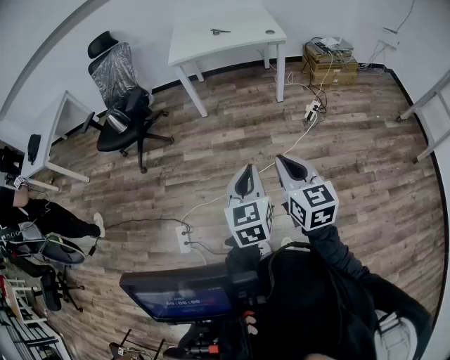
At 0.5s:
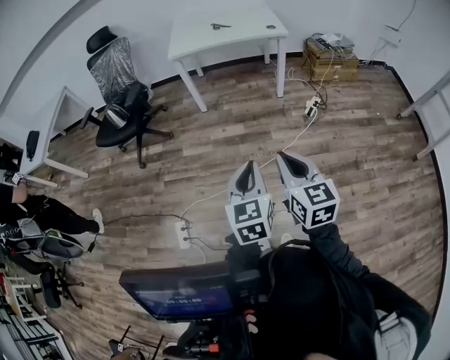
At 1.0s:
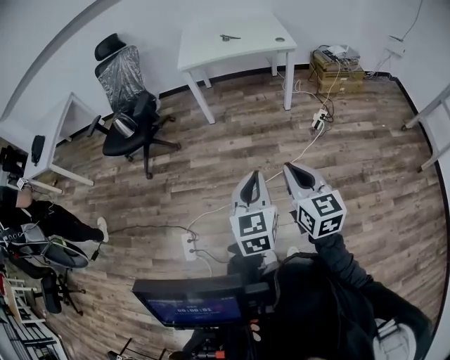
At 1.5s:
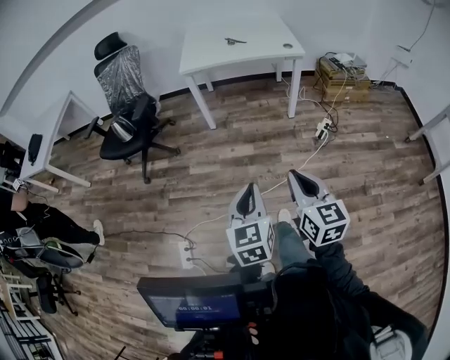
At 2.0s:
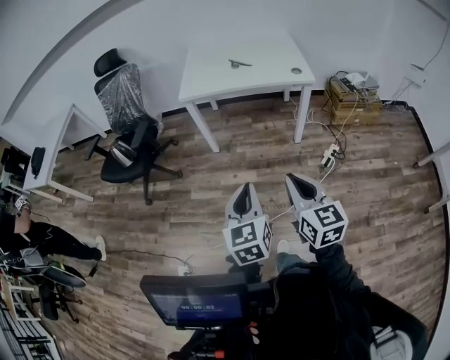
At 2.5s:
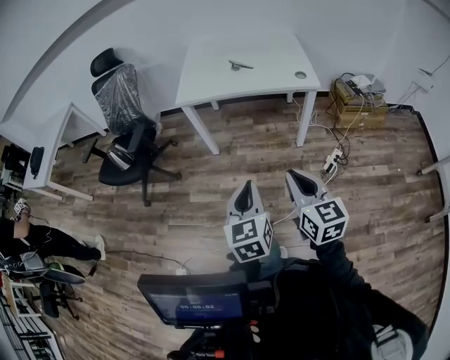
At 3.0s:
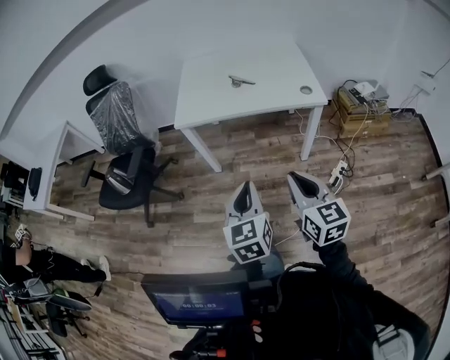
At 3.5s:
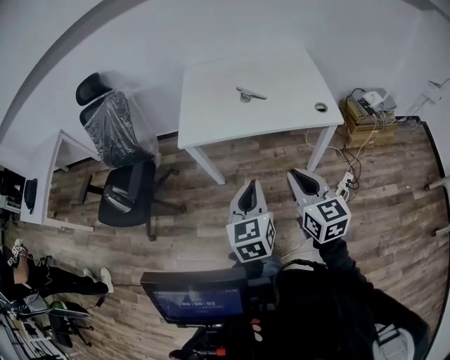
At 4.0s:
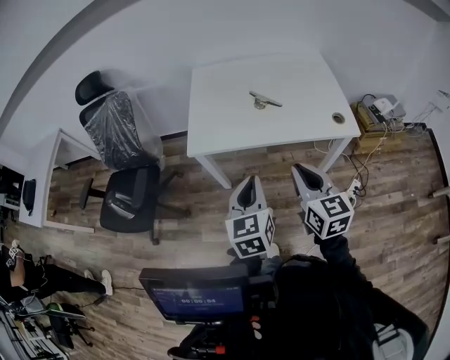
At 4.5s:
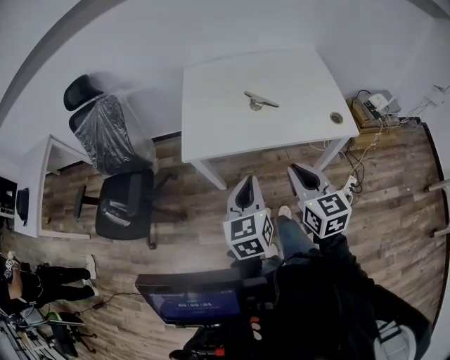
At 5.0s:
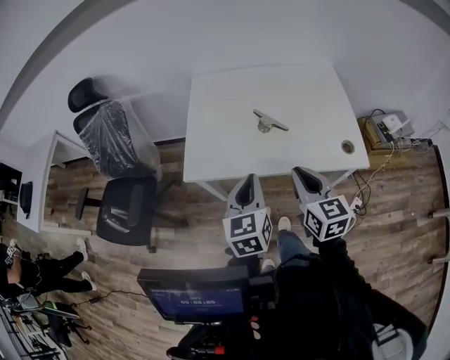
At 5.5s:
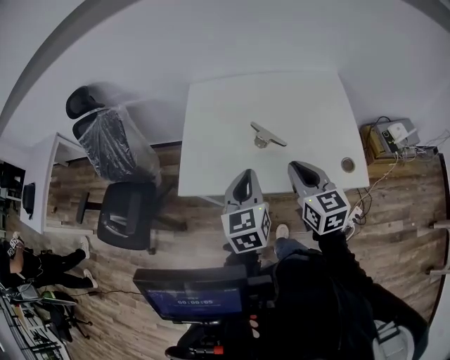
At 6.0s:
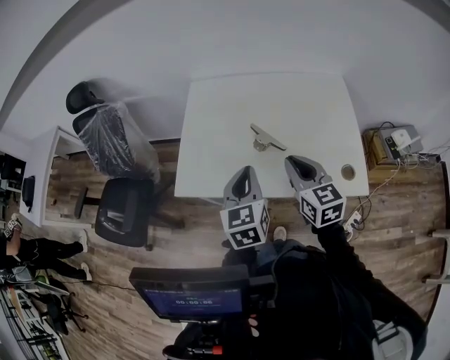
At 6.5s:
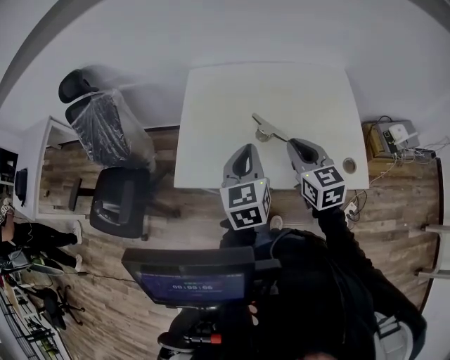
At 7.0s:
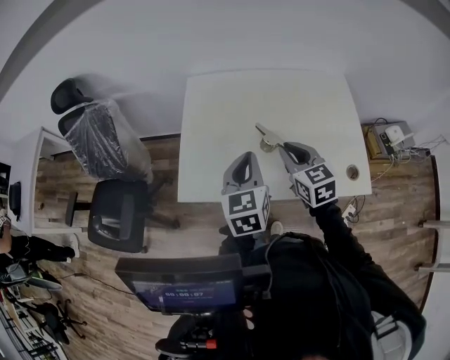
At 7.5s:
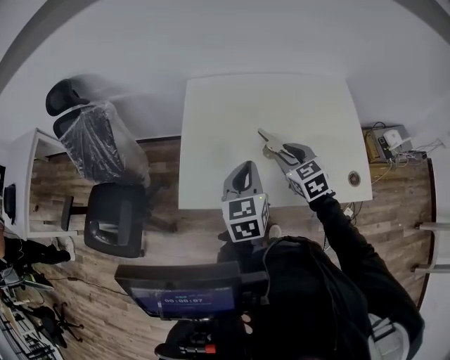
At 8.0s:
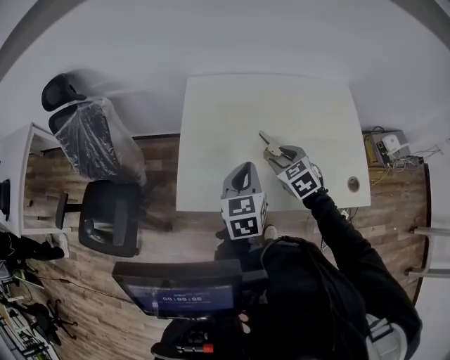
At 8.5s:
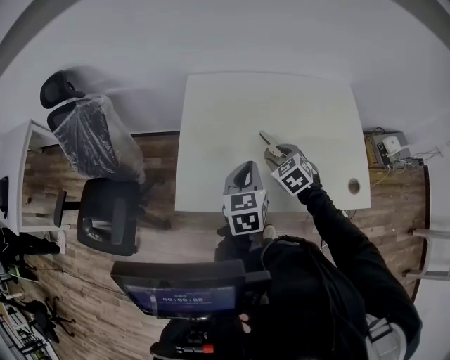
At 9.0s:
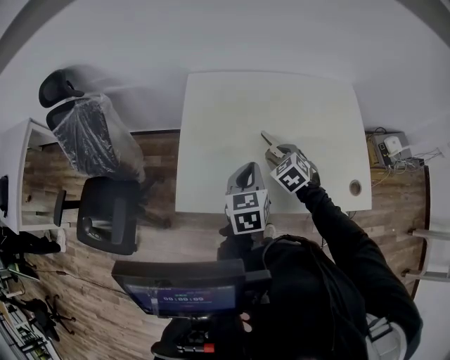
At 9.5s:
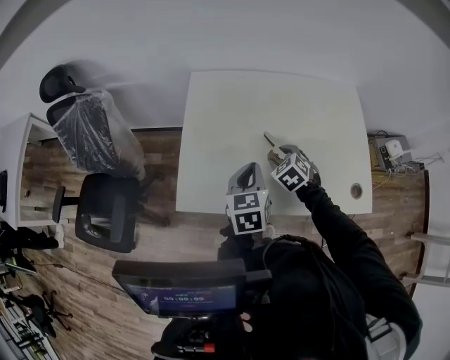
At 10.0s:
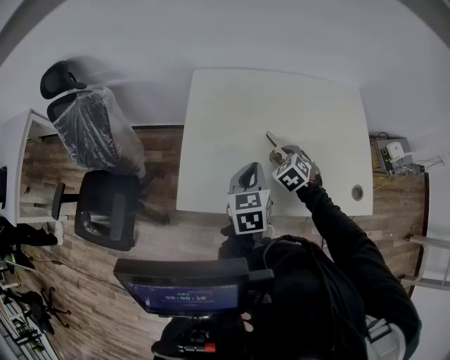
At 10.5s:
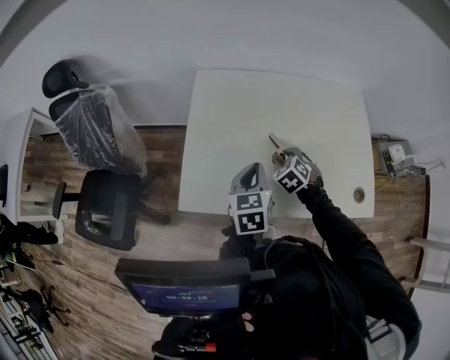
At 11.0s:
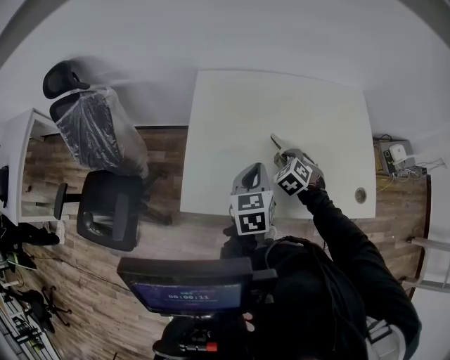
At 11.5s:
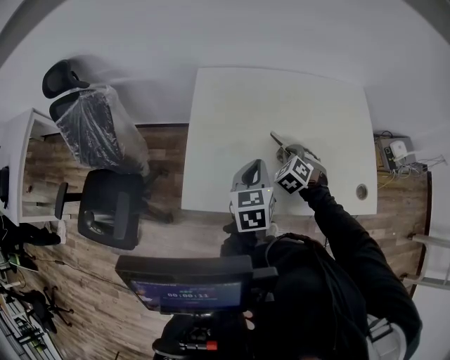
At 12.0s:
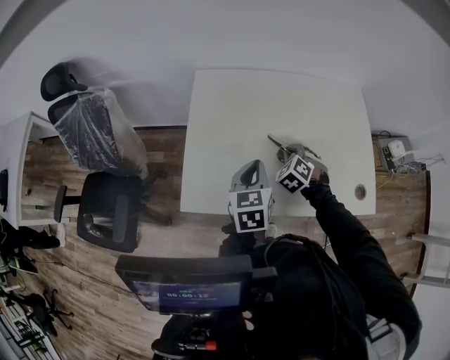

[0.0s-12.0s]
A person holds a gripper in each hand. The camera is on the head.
0.0s to 2.0s: The grippers both shift forward by roughly 30 cm.
2.0s to 4.0s: Both grippers are carried forward, some 50 cm.
4.0s to 6.0s: Both grippers move forward, roughly 25 cm.
6.0s to 8.0s: The right gripper travels forward, downward and to the left by approximately 20 cm, turns by roughly 30 degrees, and opens up. Meanwhile the left gripper travels forward and to the left by approximately 10 cm.
8.0s to 10.0s: The right gripper heads downward, covering approximately 10 cm.
10.0s to 12.0s: The right gripper closes up.

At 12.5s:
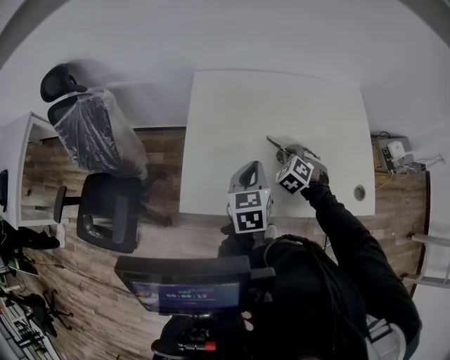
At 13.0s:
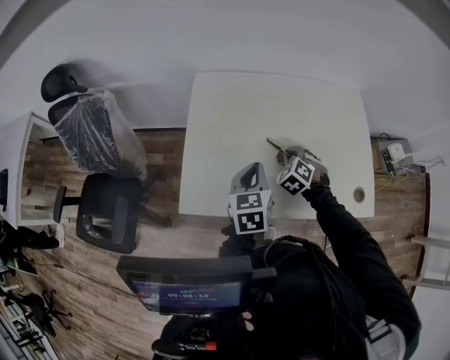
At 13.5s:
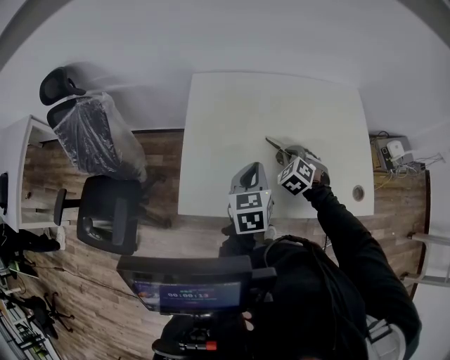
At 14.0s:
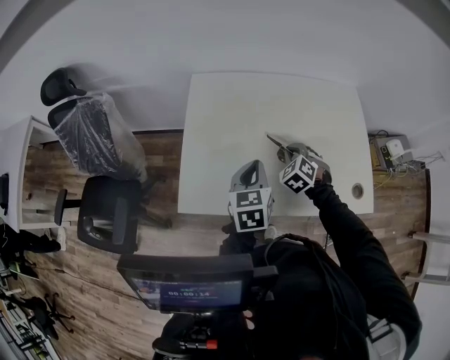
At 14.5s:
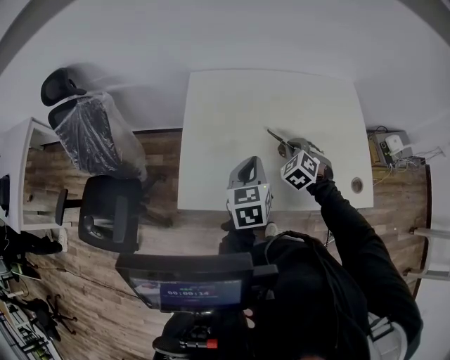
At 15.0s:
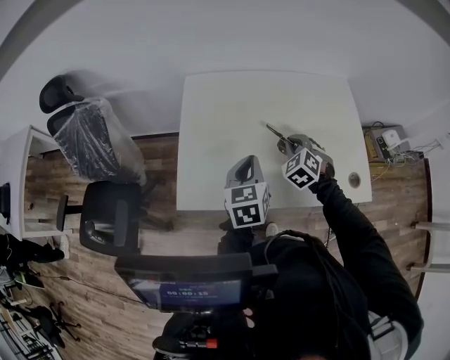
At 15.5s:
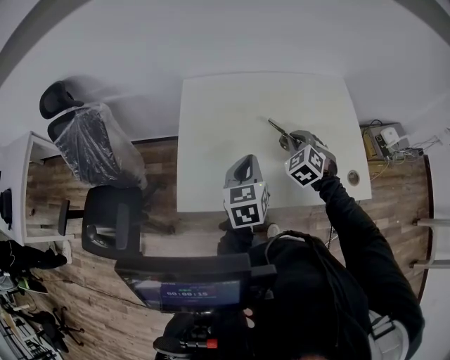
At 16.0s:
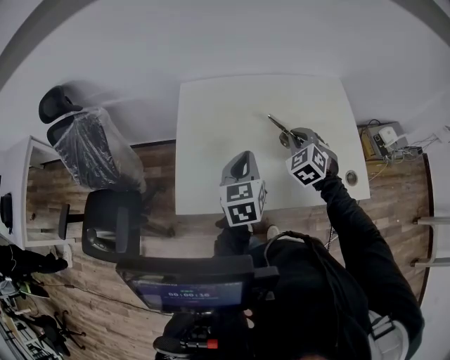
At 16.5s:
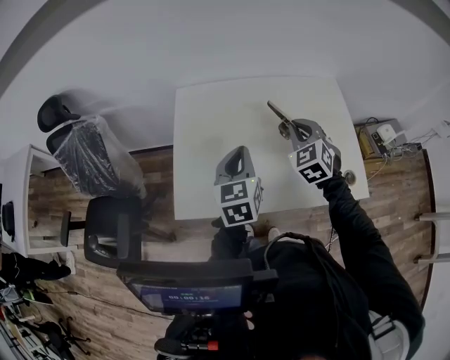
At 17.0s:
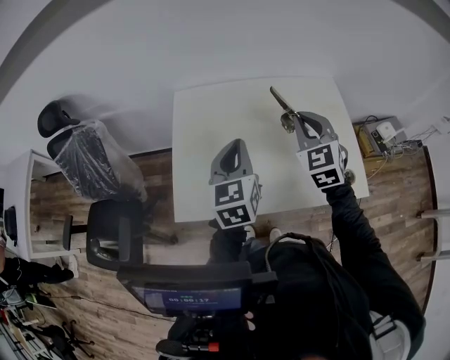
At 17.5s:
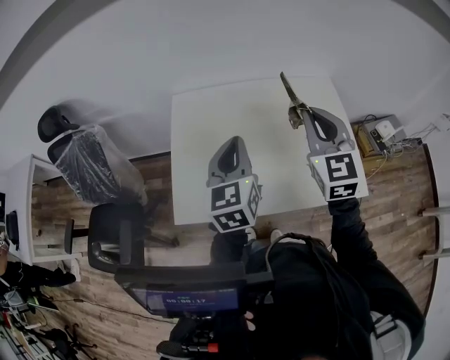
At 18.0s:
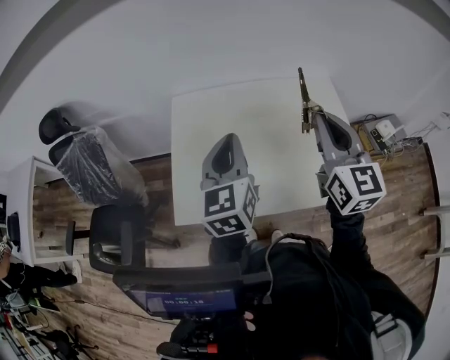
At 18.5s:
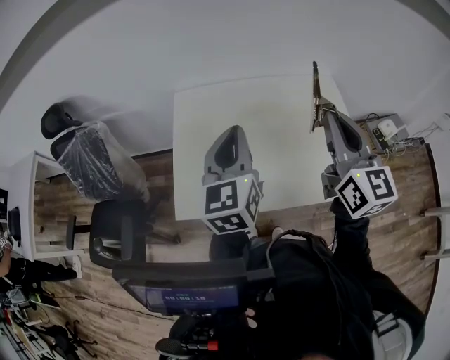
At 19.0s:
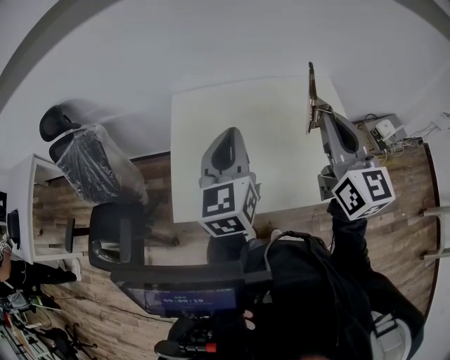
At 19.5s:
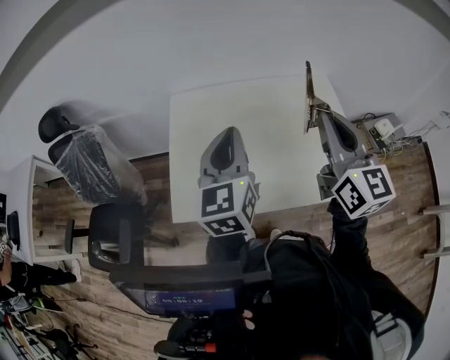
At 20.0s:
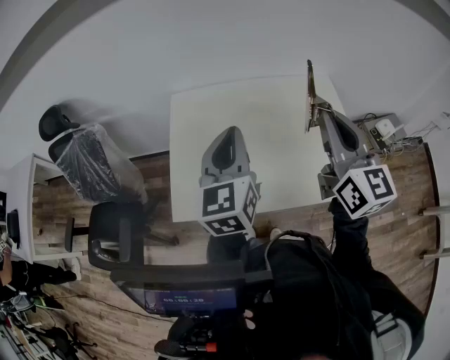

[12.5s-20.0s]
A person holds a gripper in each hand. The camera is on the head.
12.5s to 14.5s: The grippers stay close to where they were, moving slightly.
14.5s to 16.5s: The left gripper heads upward, covering roughly 5 cm. Meanwhile the right gripper travels upward by roughly 15 cm, and rotates approximately 20 degrees.
16.5s to 18.0s: The right gripper moves upward and backward, some 20 cm, and tilts its fingers some 30 degrees upward. The left gripper heads upward, covering approximately 10 cm.
18.0s to 20.0s: The grippers make only small movements.

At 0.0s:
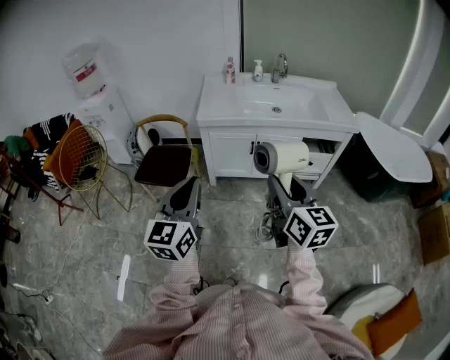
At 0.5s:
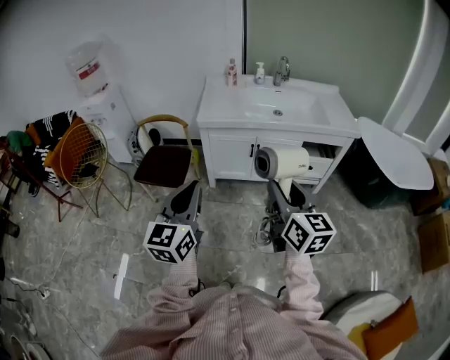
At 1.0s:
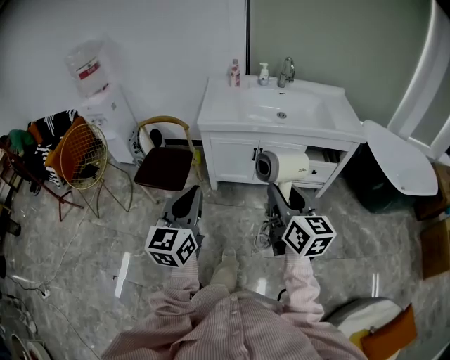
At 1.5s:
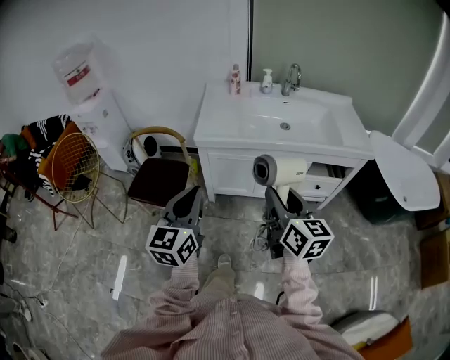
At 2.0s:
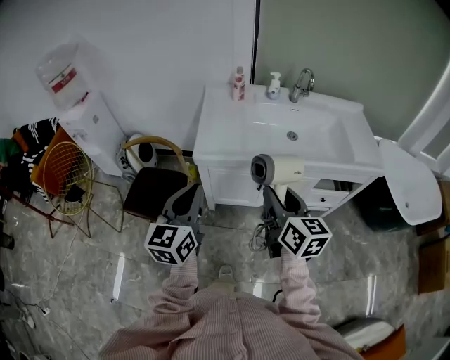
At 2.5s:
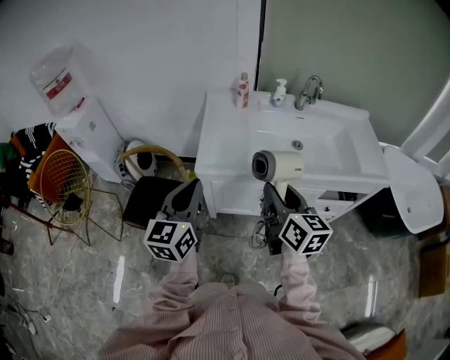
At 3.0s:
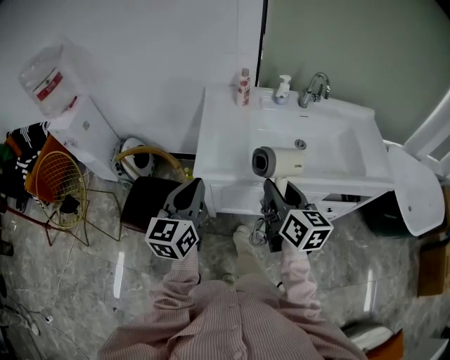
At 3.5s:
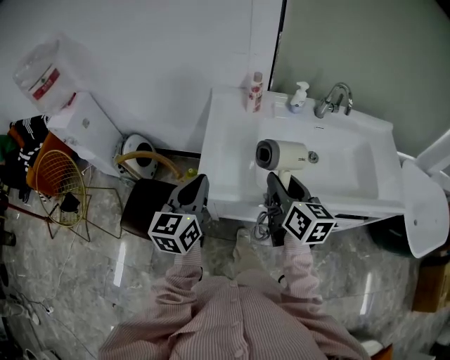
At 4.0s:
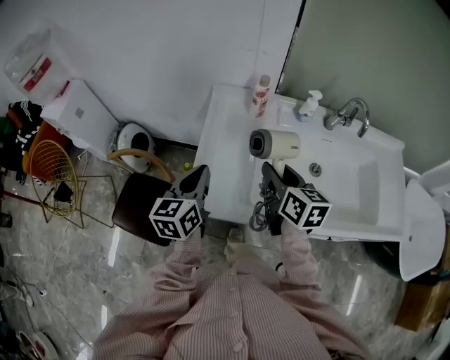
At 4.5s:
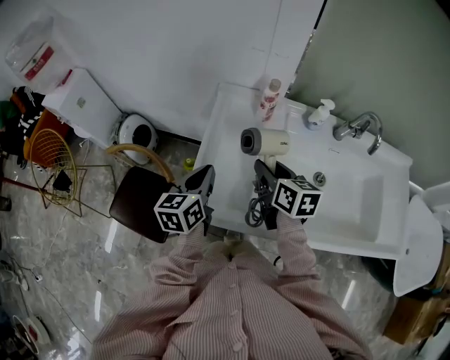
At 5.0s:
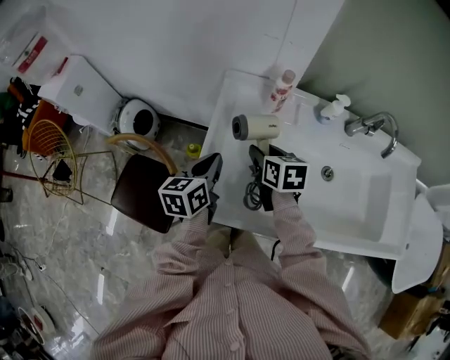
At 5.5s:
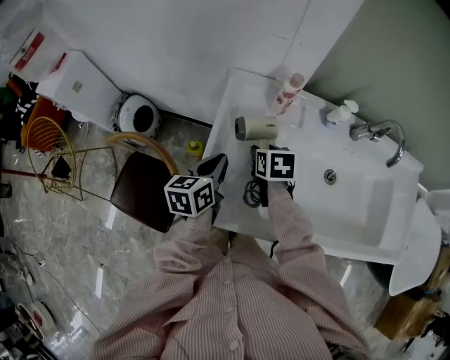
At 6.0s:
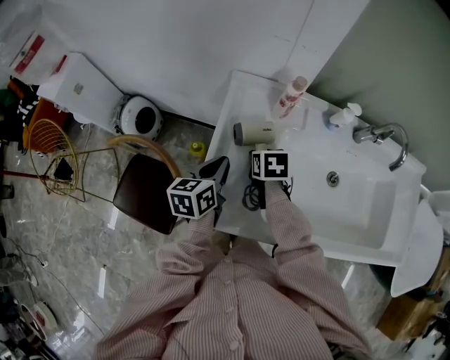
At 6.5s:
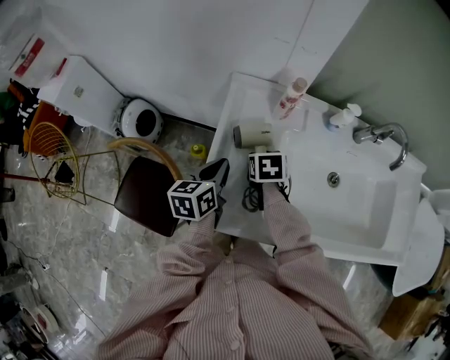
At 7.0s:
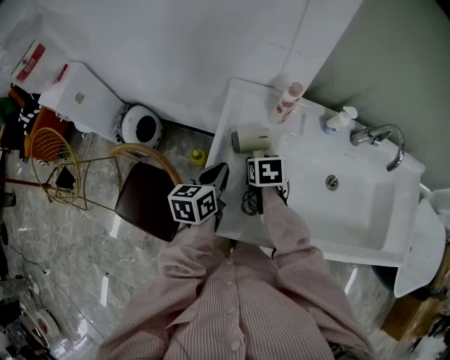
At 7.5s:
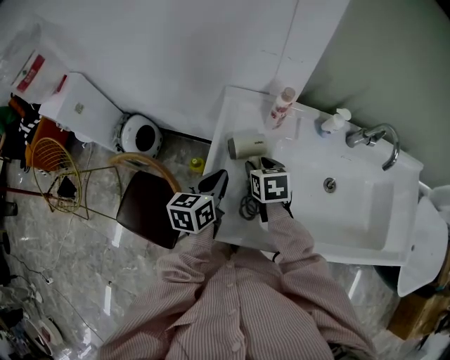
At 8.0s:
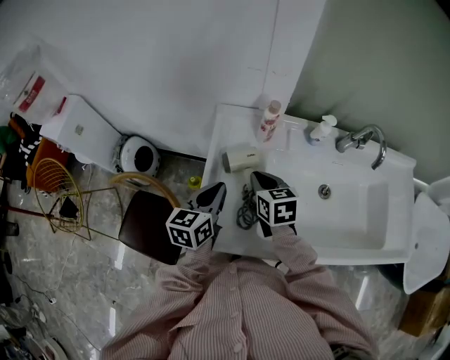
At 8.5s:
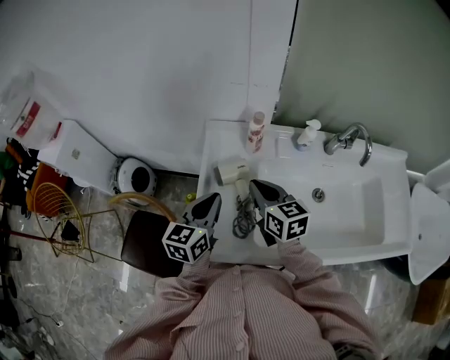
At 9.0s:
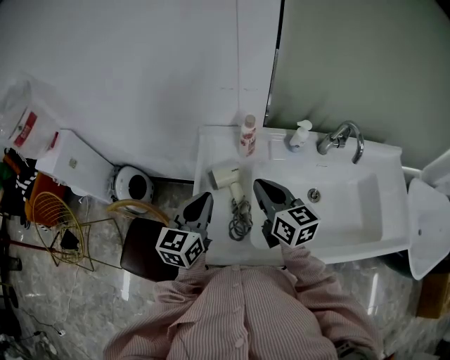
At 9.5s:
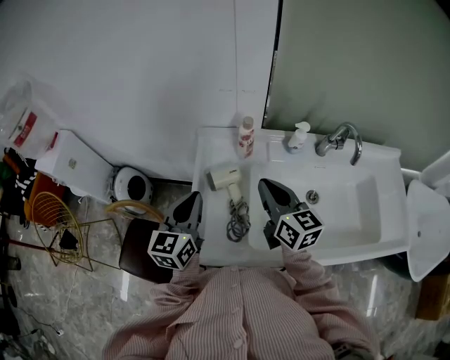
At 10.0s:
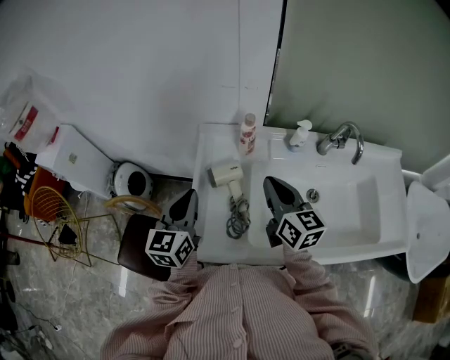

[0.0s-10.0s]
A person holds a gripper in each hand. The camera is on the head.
0.0s to 2.0s: The two grippers go about 30 cm forward.
2.0s to 4.0s: Both grippers move forward, approximately 35 cm.
4.0s to 6.0s: The left gripper heads downward and forward, covering roughly 15 cm, while the right gripper travels downward and forward by some 20 cm, and tilts its fingers about 40 degrees downward.
6.0s to 8.0s: The left gripper is displaced upward by some 5 cm, while the right gripper goes approximately 10 cm upward, turns by roughly 20 degrees, and closes.
8.0s to 10.0s: The left gripper travels upward by about 5 cm. Meanwhile the right gripper is displaced upward and to the right by some 15 cm, and rotates some 30 degrees.
